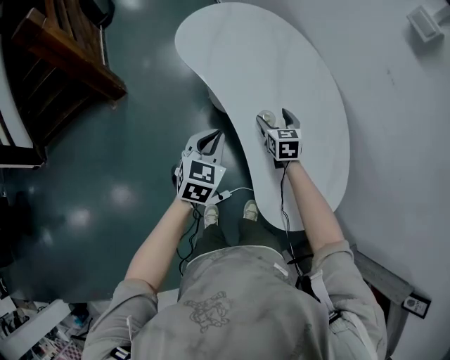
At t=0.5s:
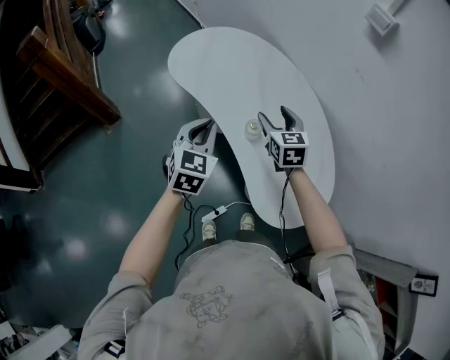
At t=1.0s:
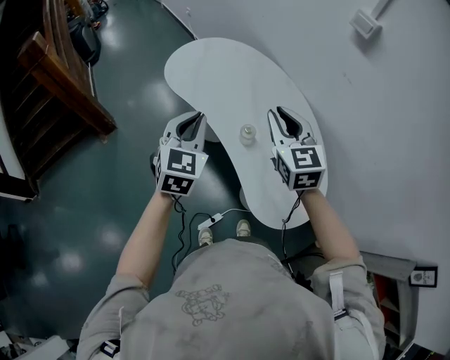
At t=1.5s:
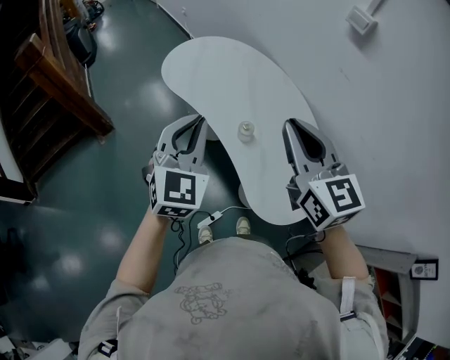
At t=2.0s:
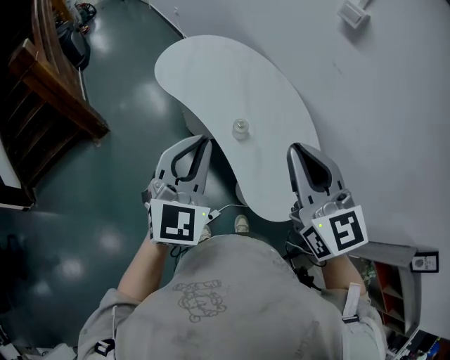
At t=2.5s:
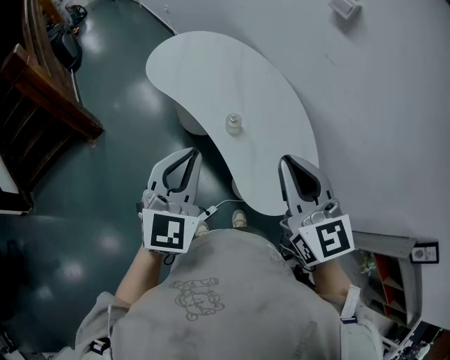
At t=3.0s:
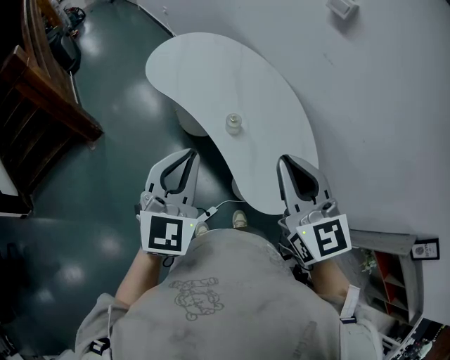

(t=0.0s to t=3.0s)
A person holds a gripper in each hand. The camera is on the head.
t=0.0s - t=1.5s: The right gripper shifts about 40 cm upward and backward, turns by roughly 30 degrees, and closes up, while the left gripper heads upward, covering about 25 cm, and turns by some 30 degrees.
t=1.5s - t=3.0s: The two grippers go about 10 cm backward.

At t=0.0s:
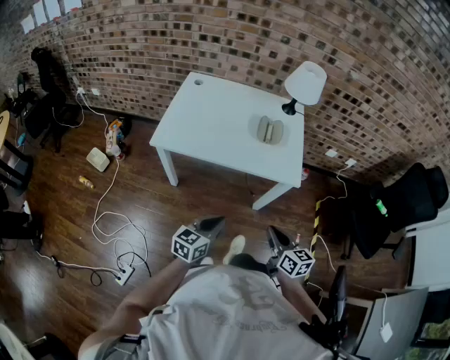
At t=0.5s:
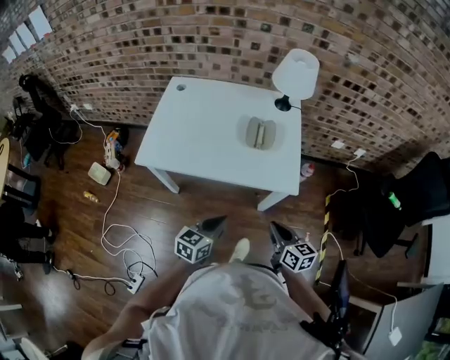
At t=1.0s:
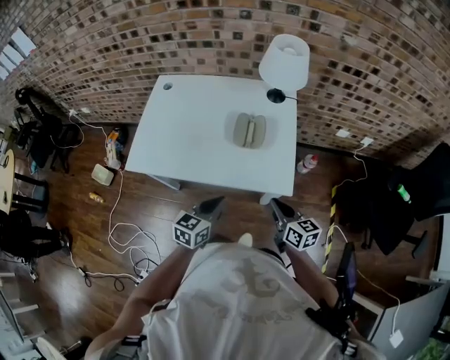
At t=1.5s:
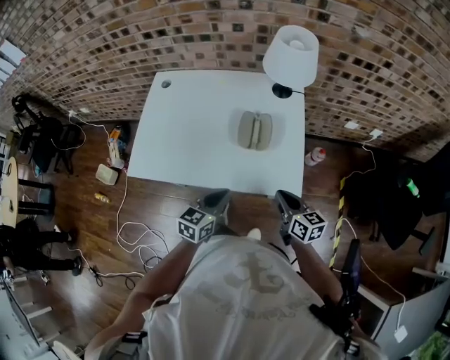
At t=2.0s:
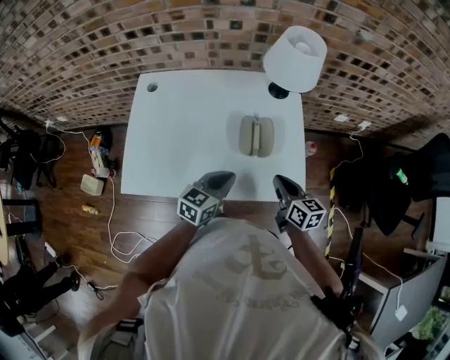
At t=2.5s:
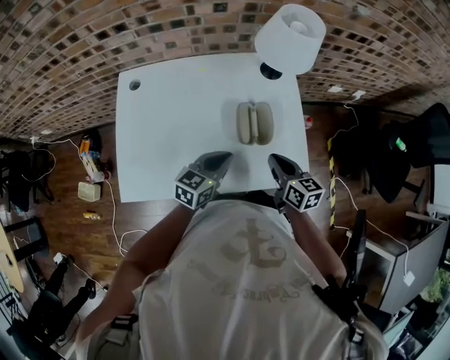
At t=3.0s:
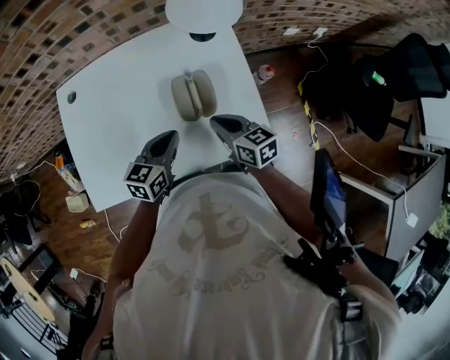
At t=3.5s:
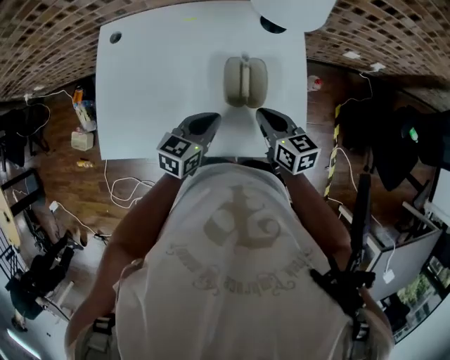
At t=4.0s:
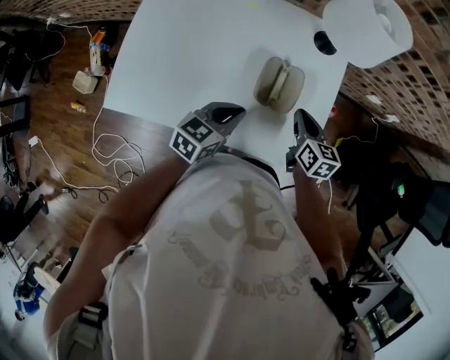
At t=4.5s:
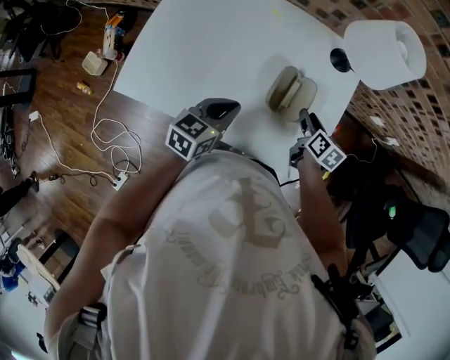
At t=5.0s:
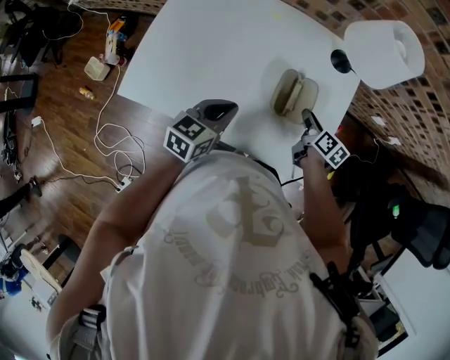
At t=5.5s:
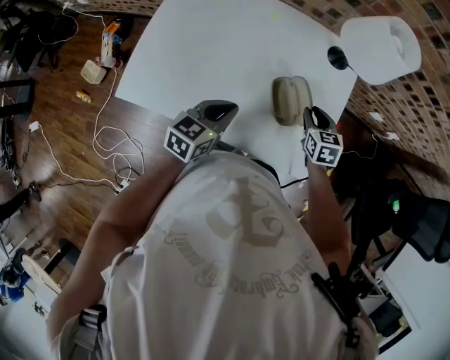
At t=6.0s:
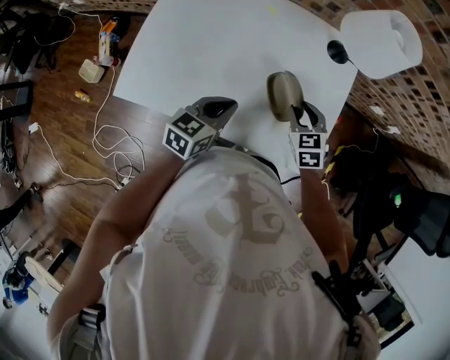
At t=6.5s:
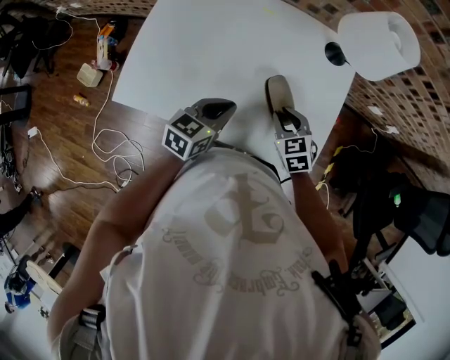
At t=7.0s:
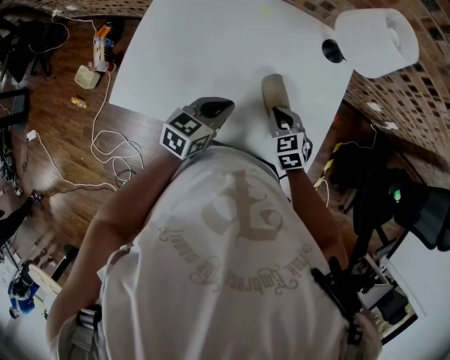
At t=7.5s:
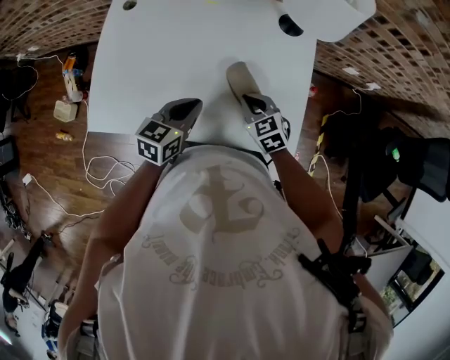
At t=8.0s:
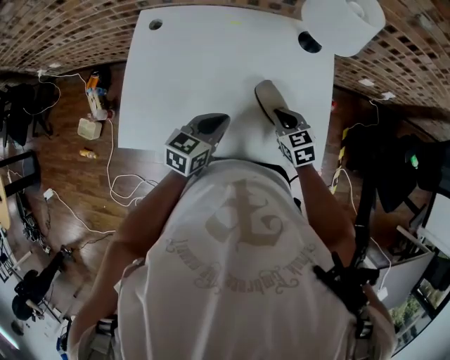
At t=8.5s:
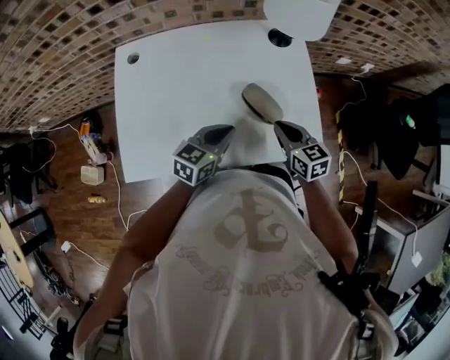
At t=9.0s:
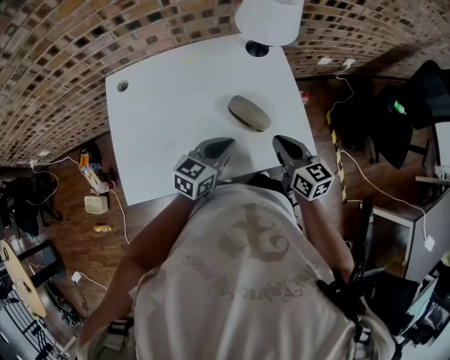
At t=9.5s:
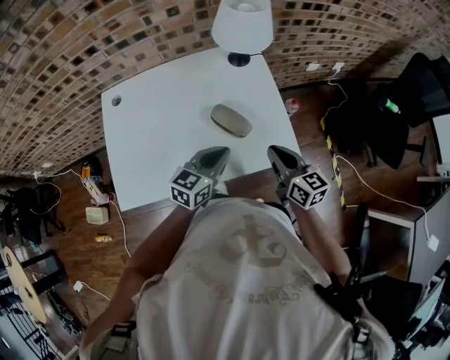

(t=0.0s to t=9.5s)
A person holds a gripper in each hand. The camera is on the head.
t=0.0s - t=2.0s: The two grippers go about 40 cm forward.
t=2.0s - t=4.0s: The right gripper heads forward, covering some 10 cm; the left gripper goes approximately 5 cm forward.
t=4.0s - t=5.5s: The right gripper rotates some 30 degrees, and opens; the left gripper heads to the left, covering some 5 cm.
t=5.5s - t=7.5s: The right gripper goes roughly 10 cm to the left and backward, and closes its fingers.
t=7.5s - t=9.5s: The left gripper moves to the right and upward, about 10 cm, and changes its angle by some 30 degrees. The right gripper heads upward, backward and to the right, covering approximately 20 cm, and tilts its fingers roughly 30 degrees upward.

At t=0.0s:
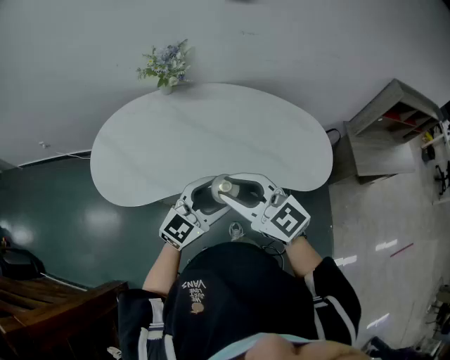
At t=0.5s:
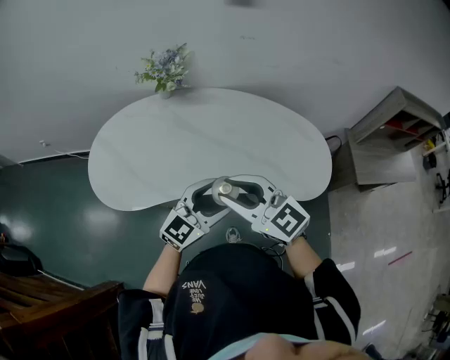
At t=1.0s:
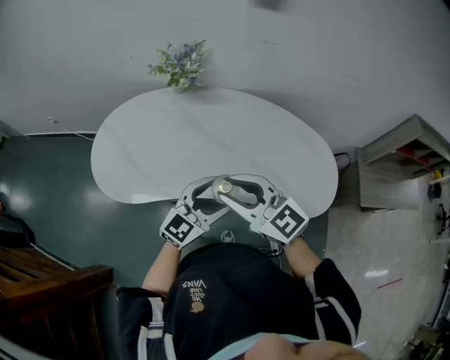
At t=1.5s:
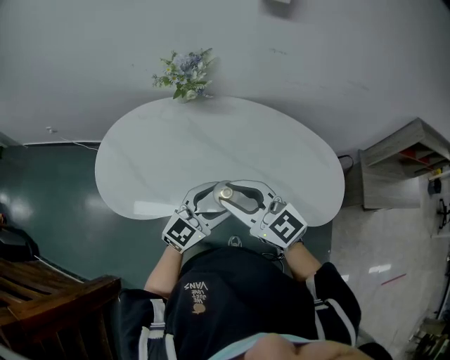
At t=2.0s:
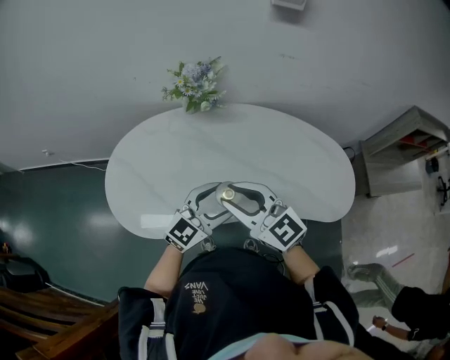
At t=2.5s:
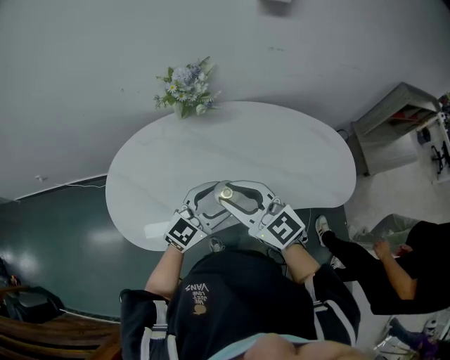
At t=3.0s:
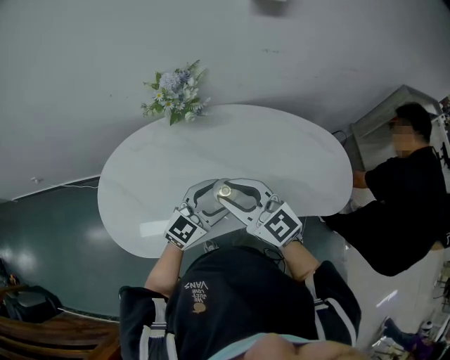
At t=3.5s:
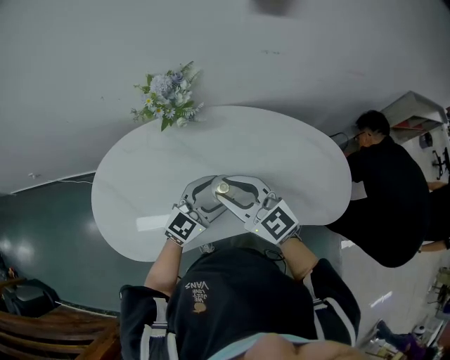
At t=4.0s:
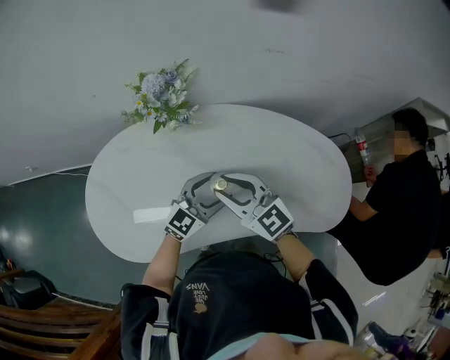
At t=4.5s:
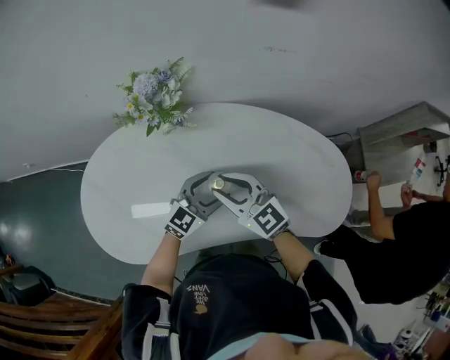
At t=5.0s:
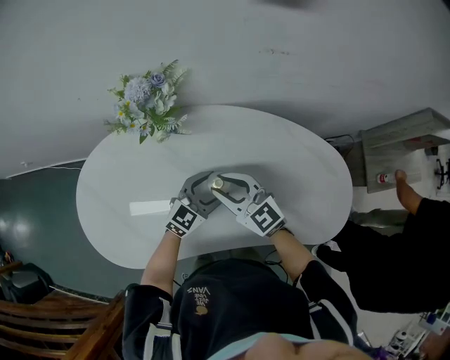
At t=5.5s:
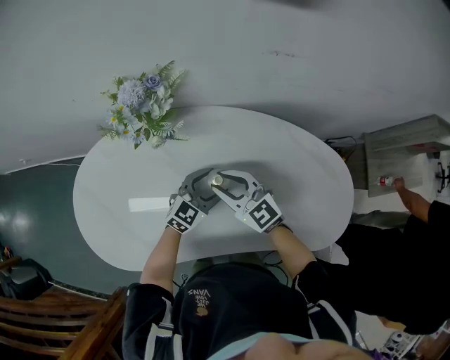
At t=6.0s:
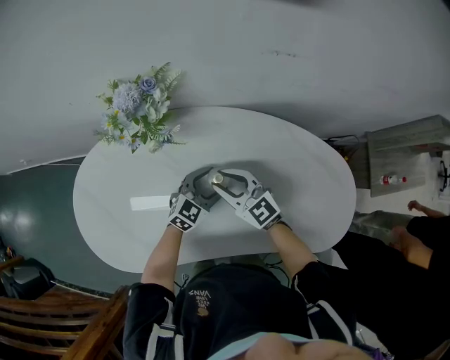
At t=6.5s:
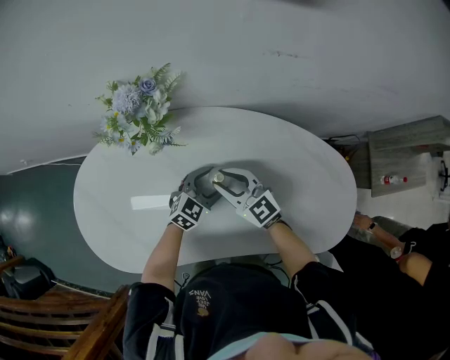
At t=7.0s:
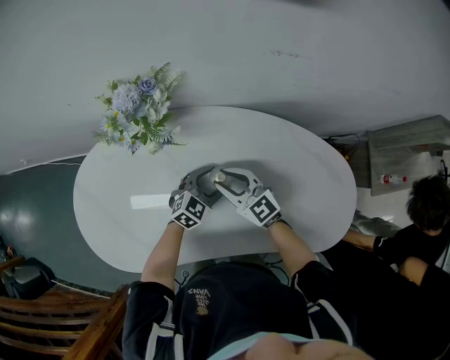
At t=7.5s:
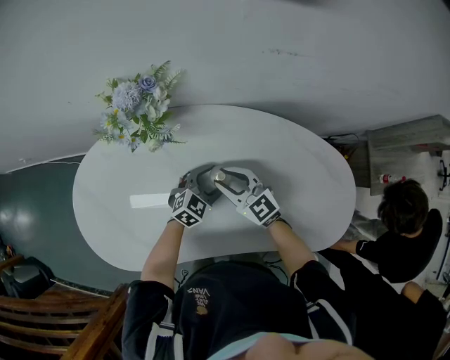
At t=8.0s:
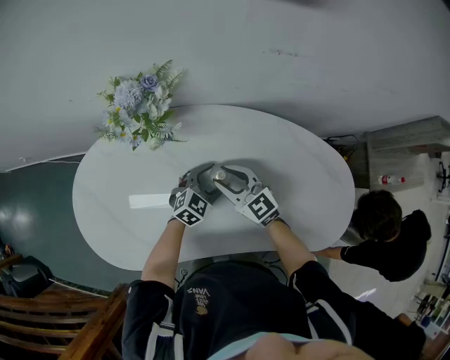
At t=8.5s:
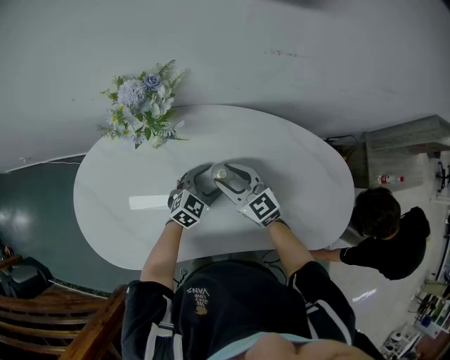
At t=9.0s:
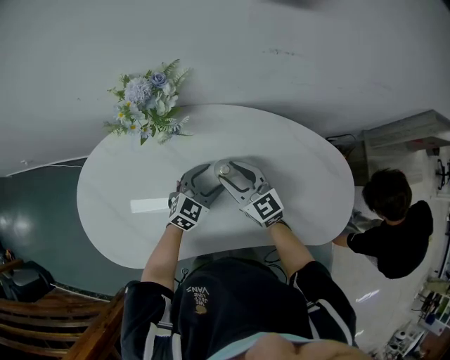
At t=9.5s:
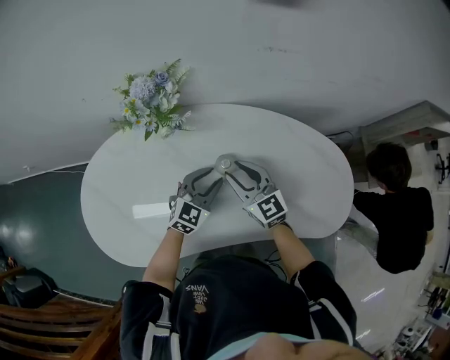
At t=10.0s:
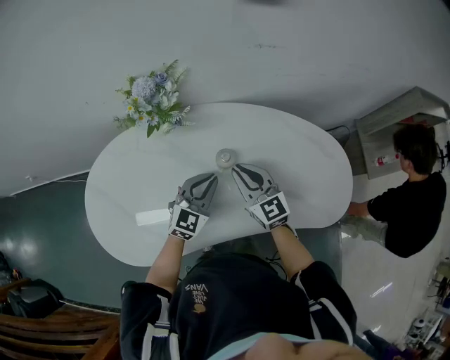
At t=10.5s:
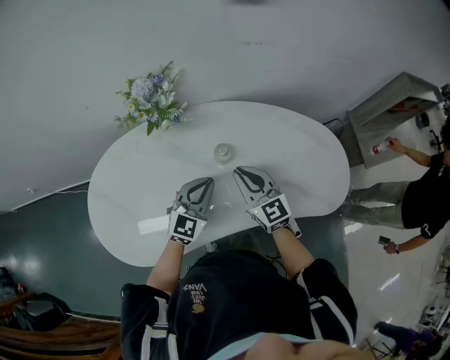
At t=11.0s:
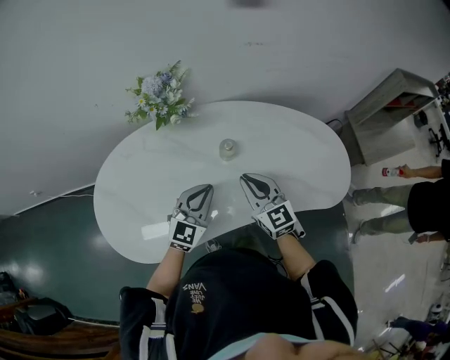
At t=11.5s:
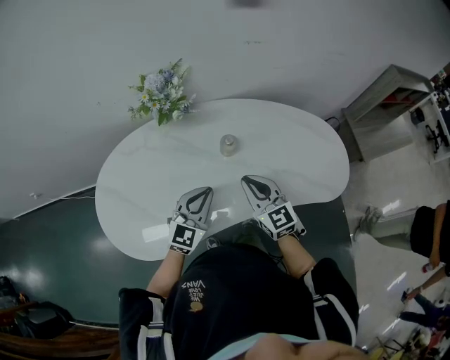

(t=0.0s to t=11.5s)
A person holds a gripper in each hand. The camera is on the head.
t=0.0s - t=2.0s: Both grippers move forward and to the left, roughly 20 cm.
t=2.0s - t=4.0s: The two grippers go approximately 15 cm forward and downward.
t=4.0s - t=6.0s: The grippers both shift downward and forward by about 15 cm.
t=6.0s - t=7.5s: The grippers stay close to where they were, moving slightly.
t=7.5s - t=9.5s: The right gripper shifts approximately 5 cm upward. Meanwhile the left gripper moves upward, roughly 10 cm, and closes its fingers.
t=9.5s - t=11.5s: The left gripper moves backward and upward, roughly 20 cm, and closes up, while the right gripper shifts roughly 15 cm backward, and closes.

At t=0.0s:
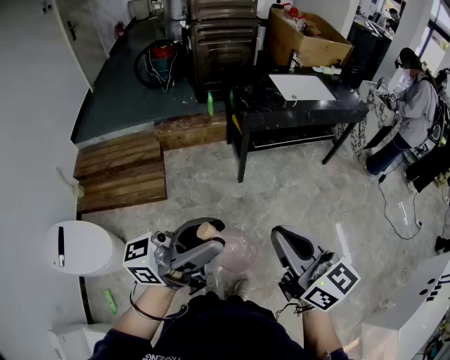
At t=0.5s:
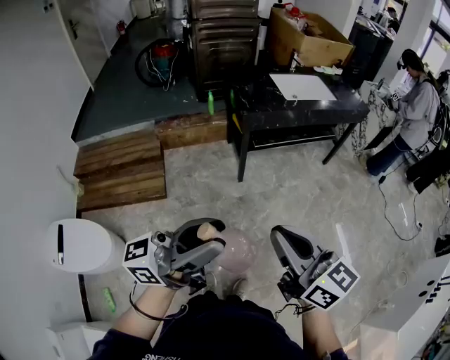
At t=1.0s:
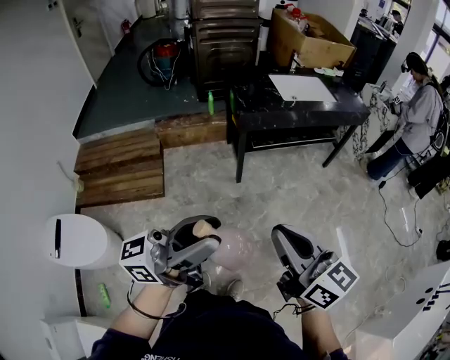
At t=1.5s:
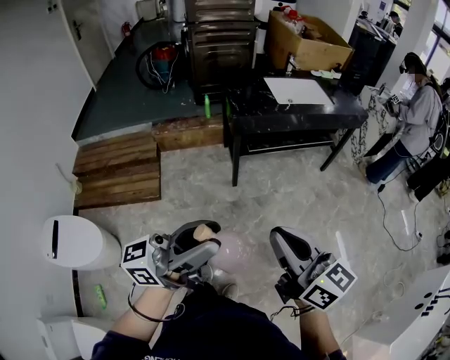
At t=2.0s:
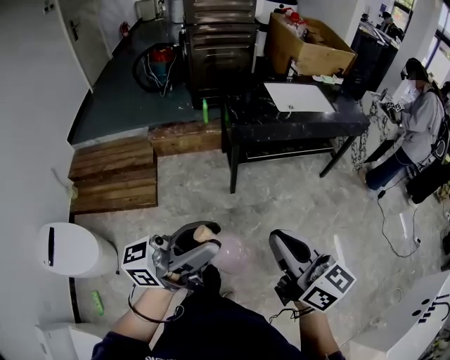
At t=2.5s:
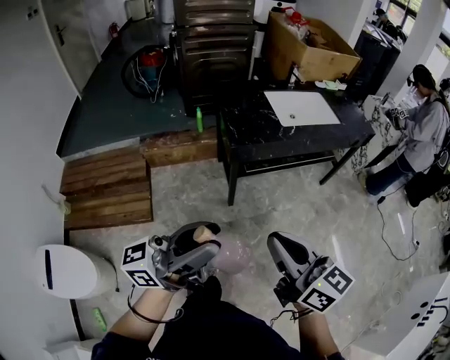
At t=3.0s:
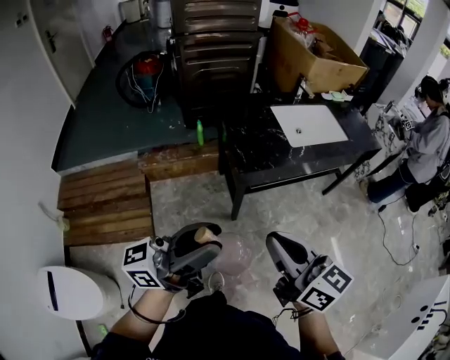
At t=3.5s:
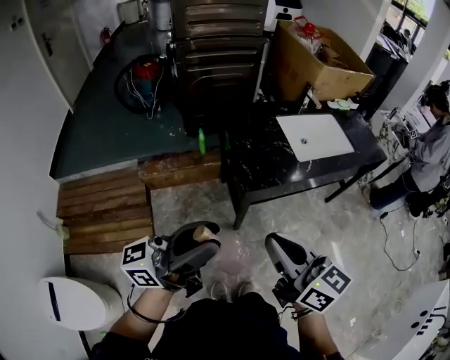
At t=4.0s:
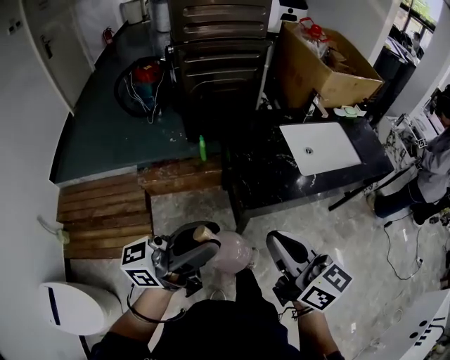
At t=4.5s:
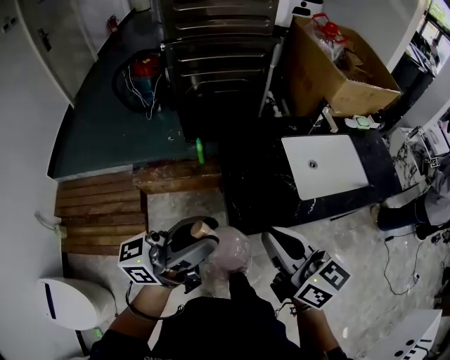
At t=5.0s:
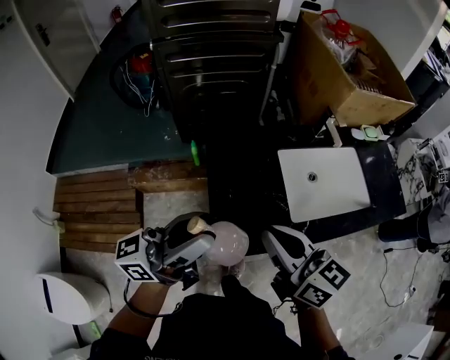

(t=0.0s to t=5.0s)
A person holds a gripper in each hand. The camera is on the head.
t=0.0s - t=2.5s: Both grippers travel together forward, roughly 20 cm.
t=2.5s - t=5.0s: The pair of grippers is taken forward, about 50 cm.
